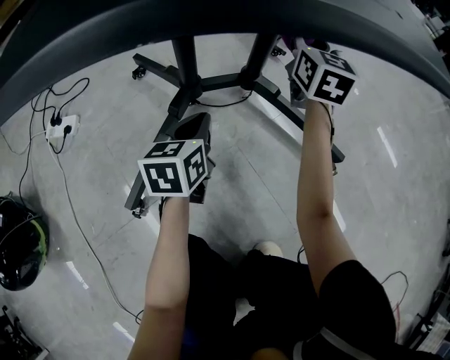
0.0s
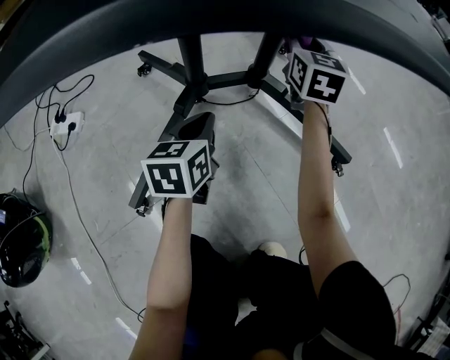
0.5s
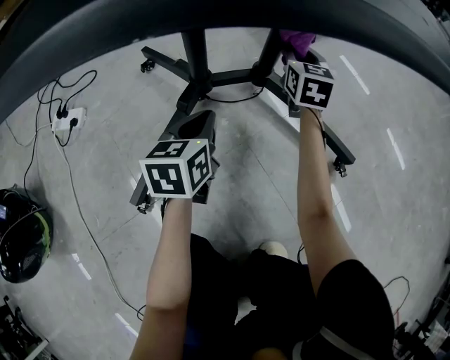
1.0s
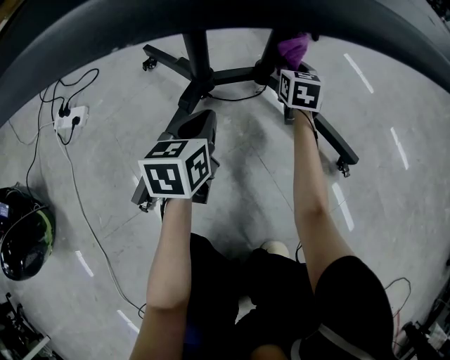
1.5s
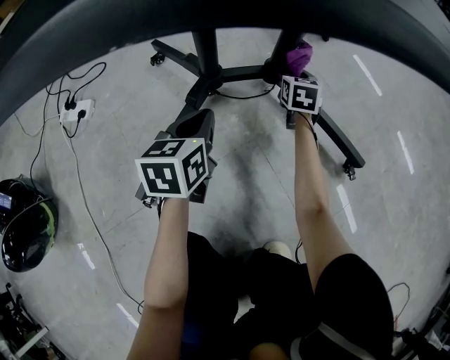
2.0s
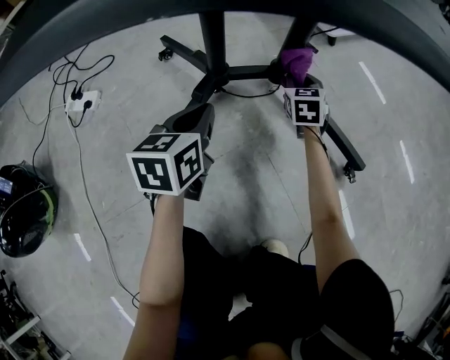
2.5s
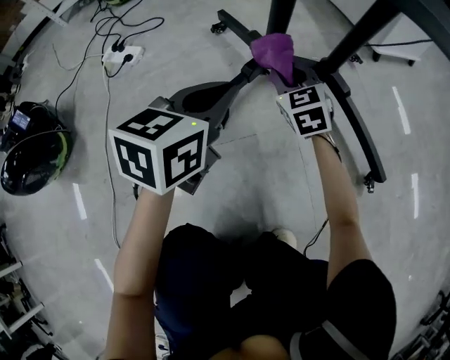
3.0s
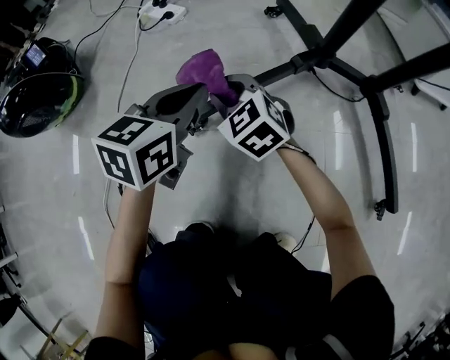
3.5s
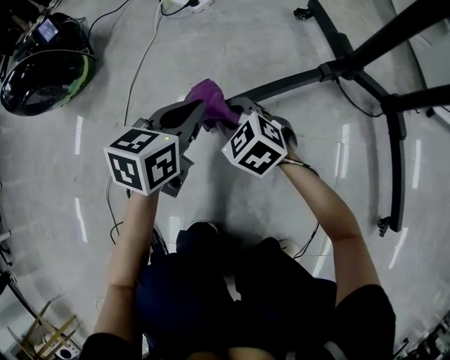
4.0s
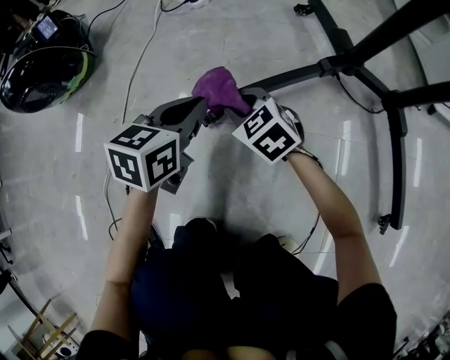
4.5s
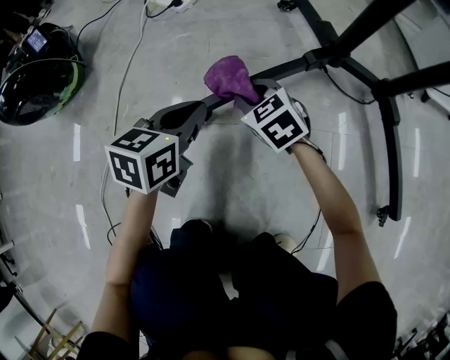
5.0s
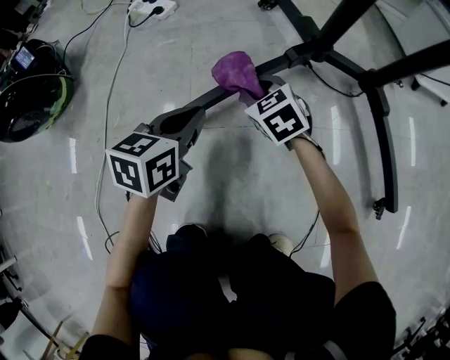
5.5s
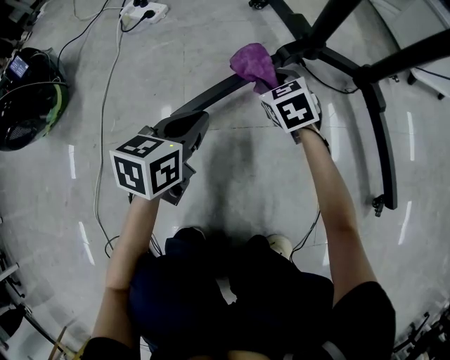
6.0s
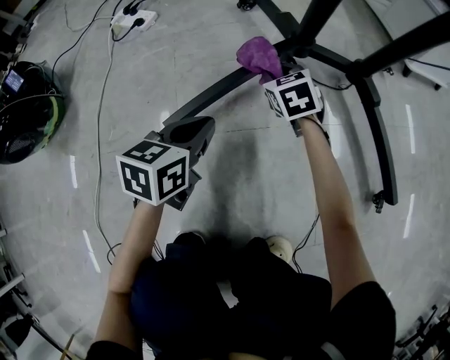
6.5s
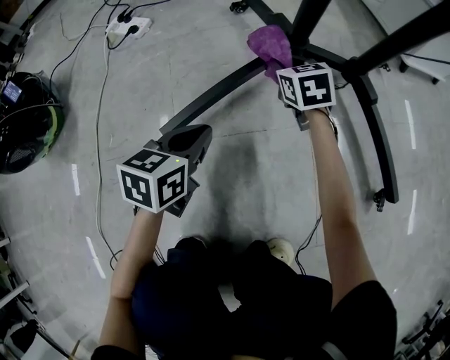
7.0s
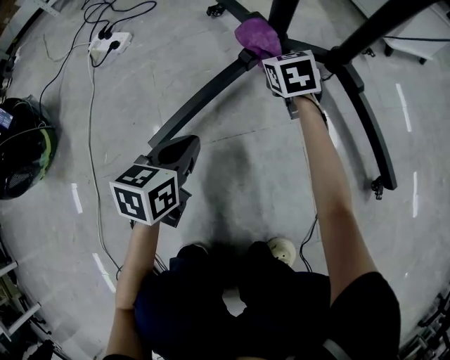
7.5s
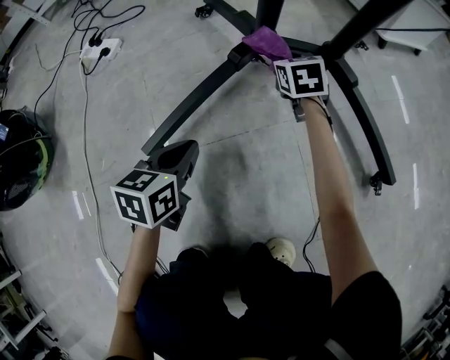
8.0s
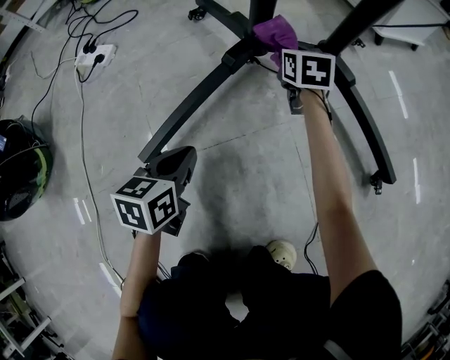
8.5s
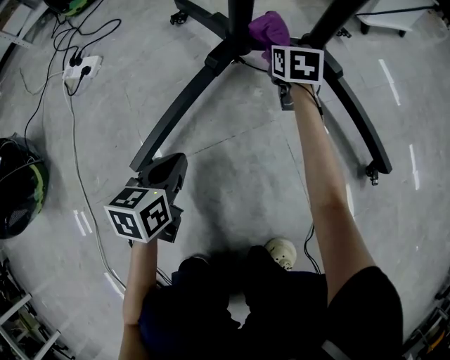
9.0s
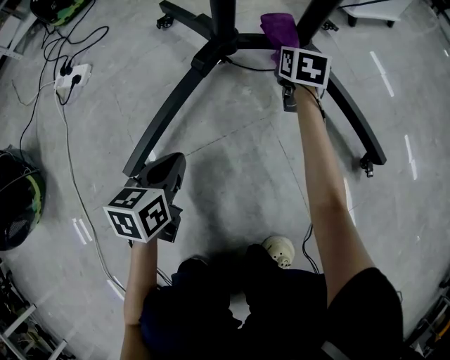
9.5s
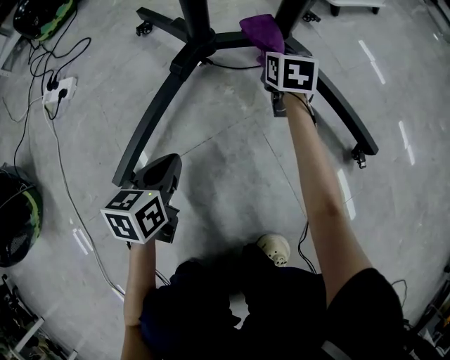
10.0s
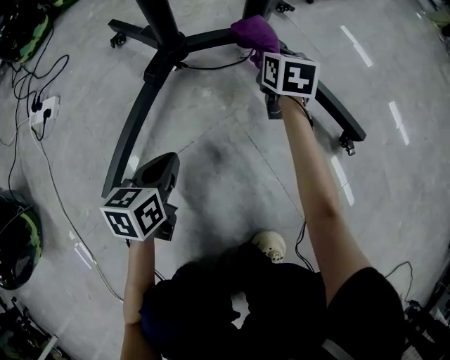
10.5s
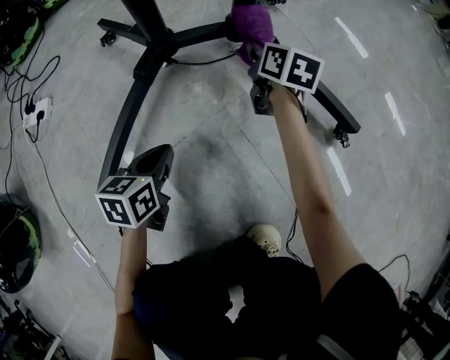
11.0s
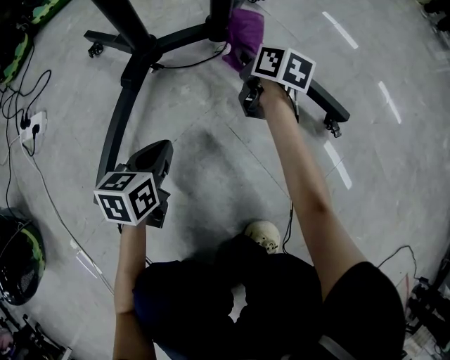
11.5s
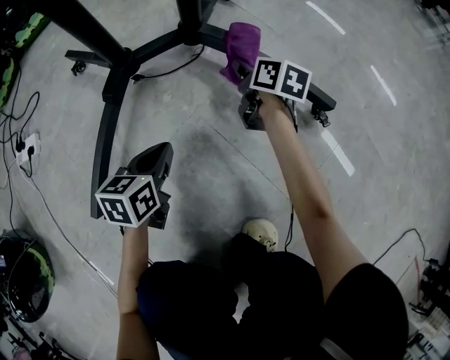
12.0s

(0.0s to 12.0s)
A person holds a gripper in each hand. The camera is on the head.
0.0s - 2.0s: The right gripper shifts some 25 cm downward, and swivels approximately 20 degrees.
2.0s - 4.0s: The right gripper shifts by about 60 cm, and rotates approximately 90 degrees. Meanwhile the left gripper reaches roughly 10 cm upward, then returns, and changes its angle by some 20 degrees.
4.0s - 6.0s: The left gripper heads to the right, covering roughly 10 cm; the right gripper travels to the right and forward by approximately 25 cm, and swivels roughly 30 degrees.
6.0s - 8.0s: The left gripper moves to the right, about 5 cm; the right gripper goes roughly 20 cm to the right and forward, and rotates approximately 30 degrees.
8.0s - 10.0s: The right gripper goes approximately 15 cm to the right, and turns by some 20 degrees; the left gripper moves approximately 5 cm.
10.0s - 12.0s: The left gripper heads to the right and forward, covering about 10 cm, while the right gripper travels to the right and backward by about 15 cm, and rotates approximately 40 degrees.

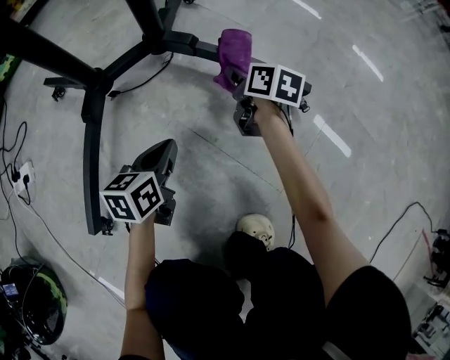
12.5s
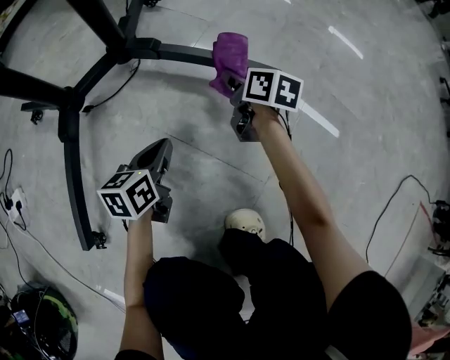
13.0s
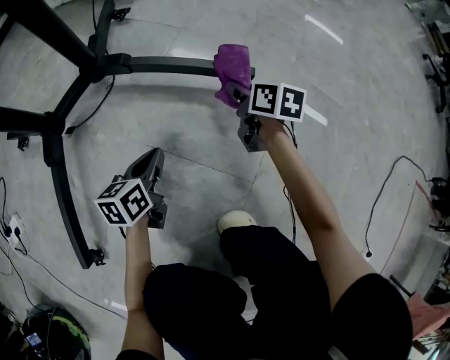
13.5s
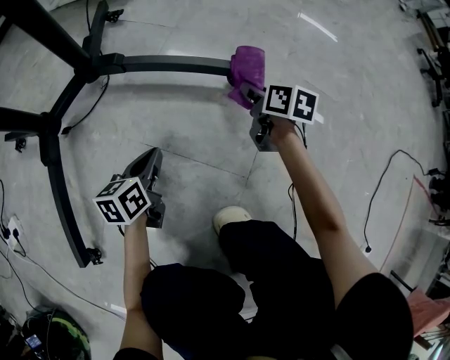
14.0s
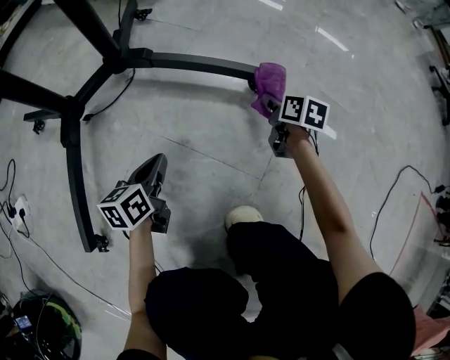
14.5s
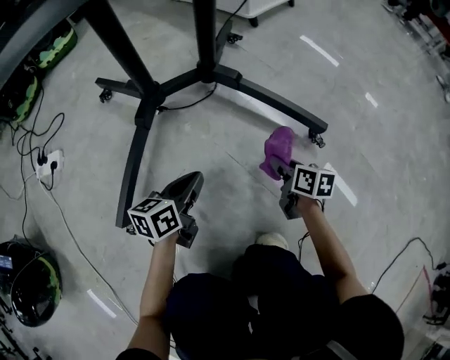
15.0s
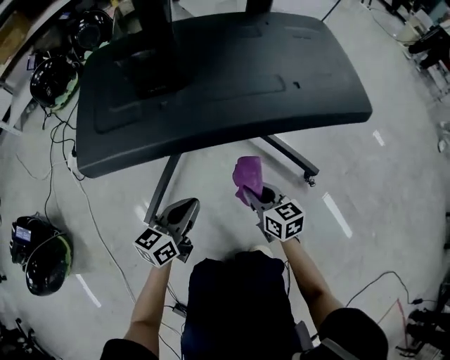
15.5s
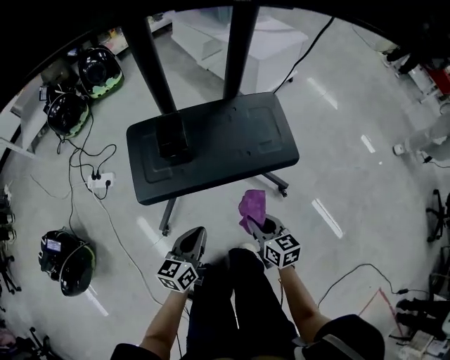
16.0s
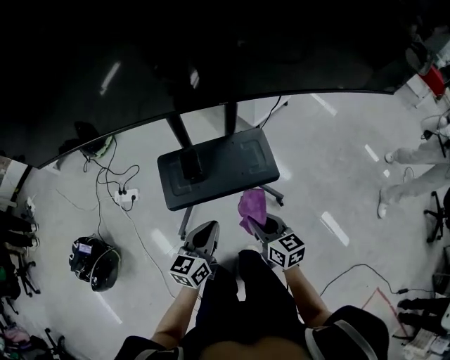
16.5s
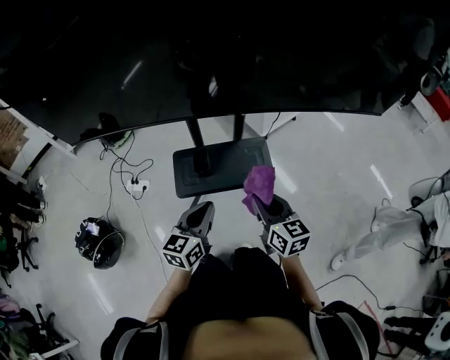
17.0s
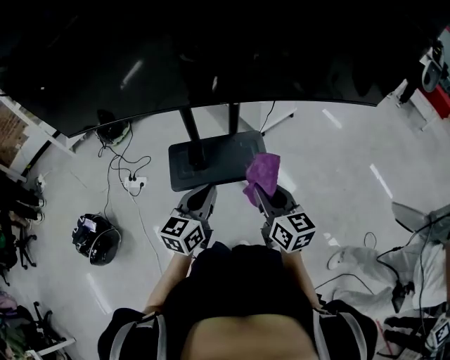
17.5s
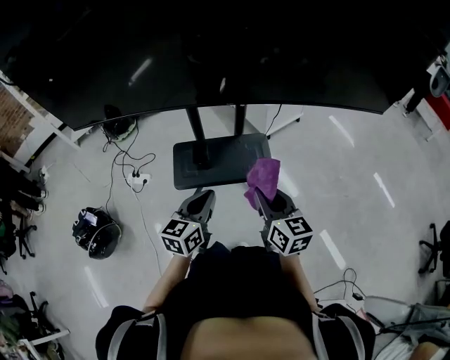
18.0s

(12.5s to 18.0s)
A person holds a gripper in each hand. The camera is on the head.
12.5s - 14.5s: The right gripper moves to the right, approximately 25 cm.
14.5s - 16.0s: The grippers both shift upward by approximately 40 cm. The left gripper changes its angle by approximately 20 degrees. The right gripper swivels some 50 degrees.
16.0s - 18.0s: The grippers both shift upward by some 40 cm.

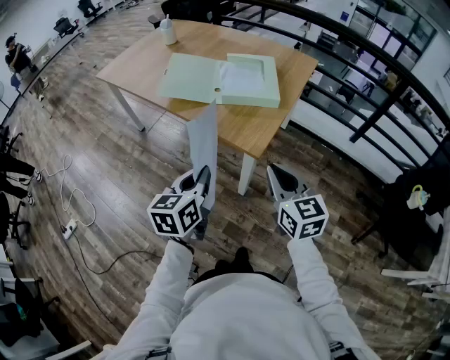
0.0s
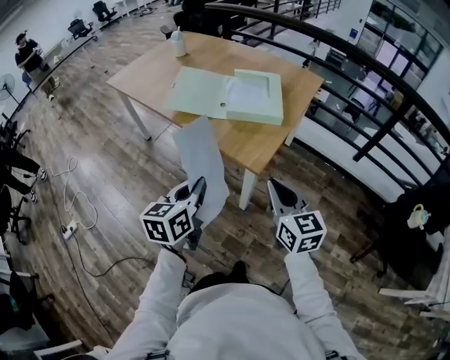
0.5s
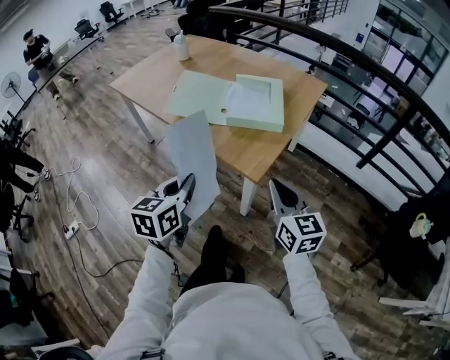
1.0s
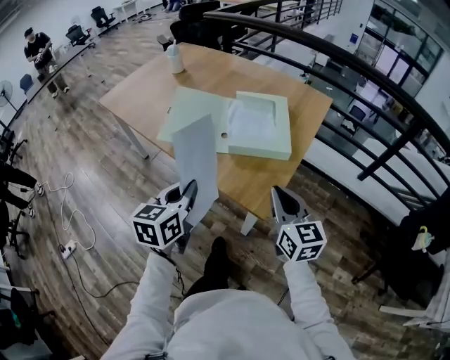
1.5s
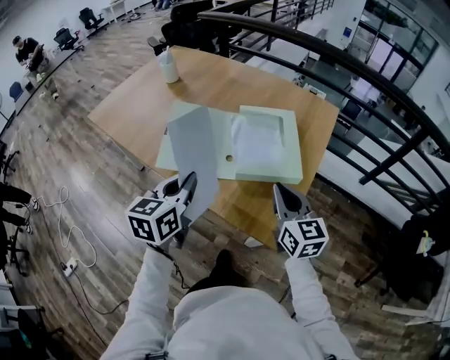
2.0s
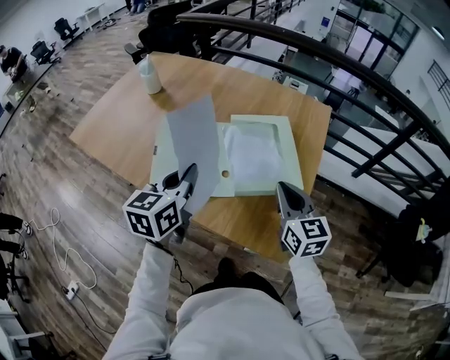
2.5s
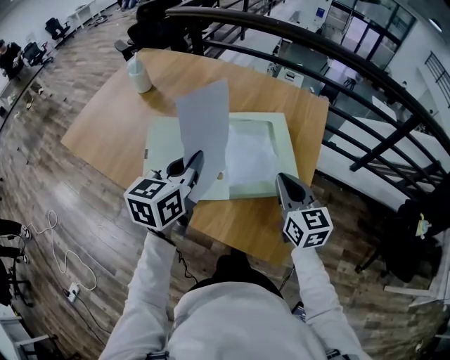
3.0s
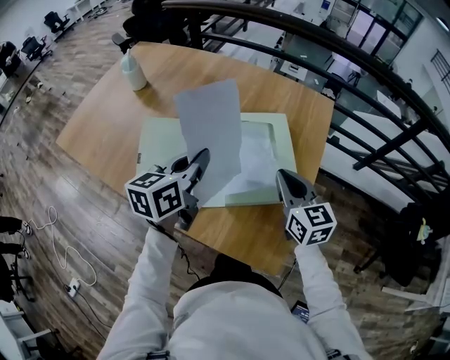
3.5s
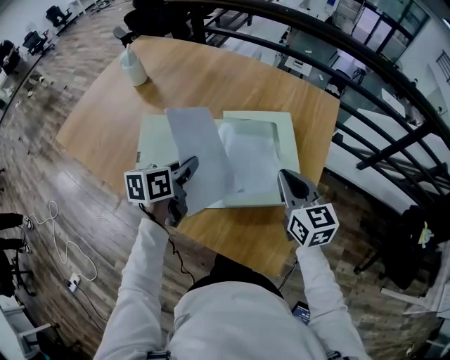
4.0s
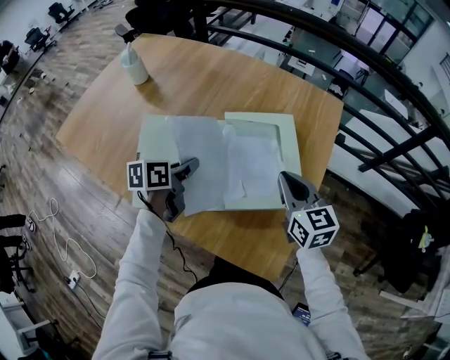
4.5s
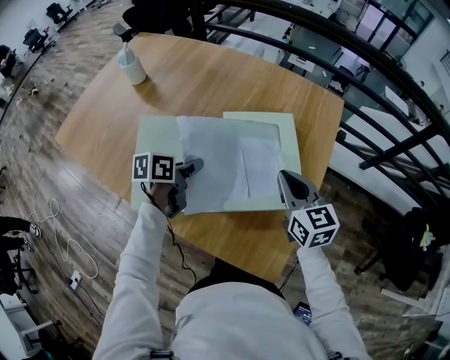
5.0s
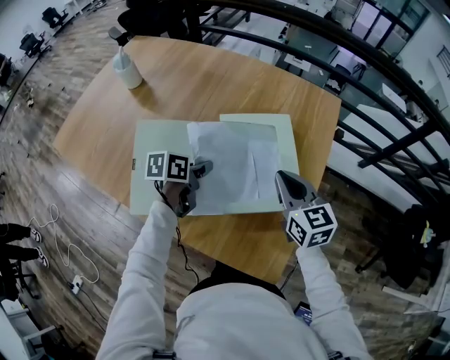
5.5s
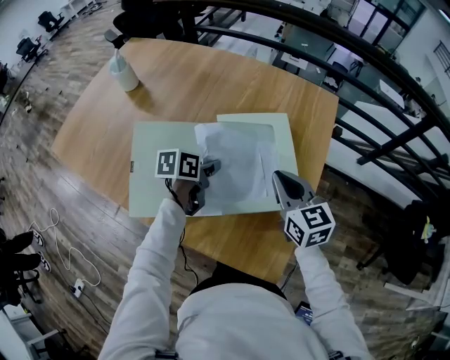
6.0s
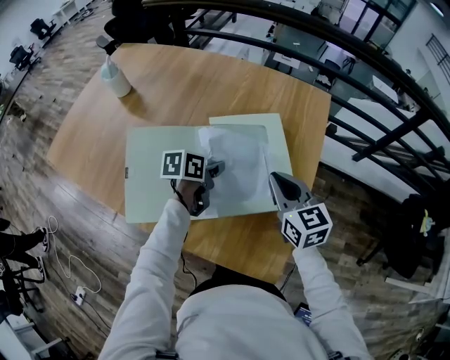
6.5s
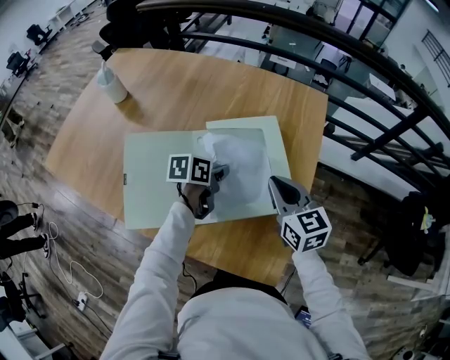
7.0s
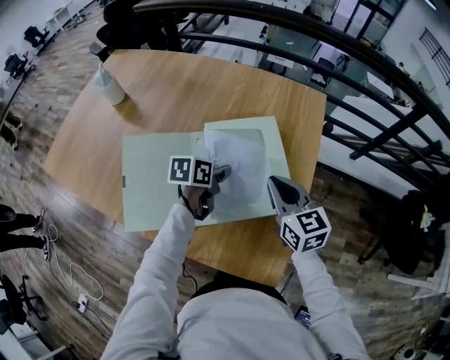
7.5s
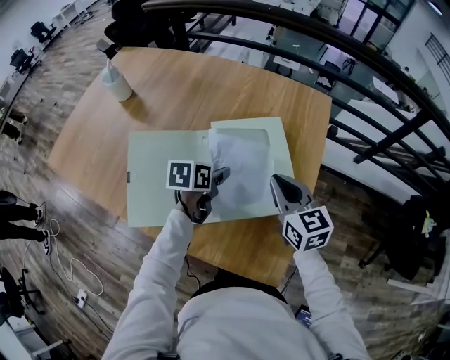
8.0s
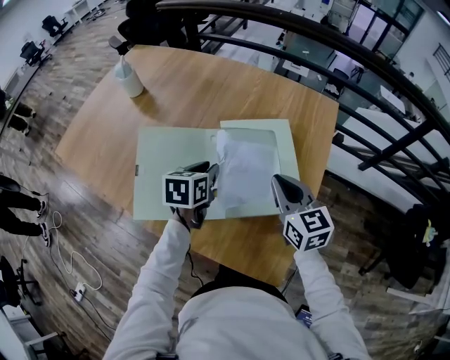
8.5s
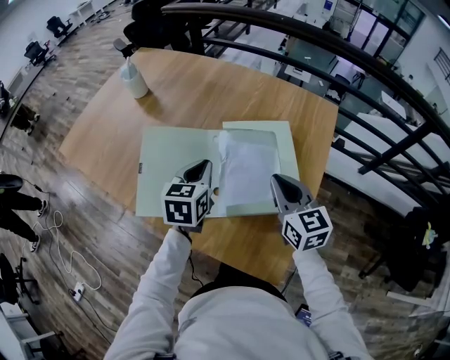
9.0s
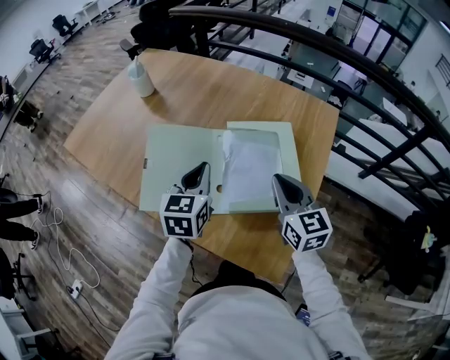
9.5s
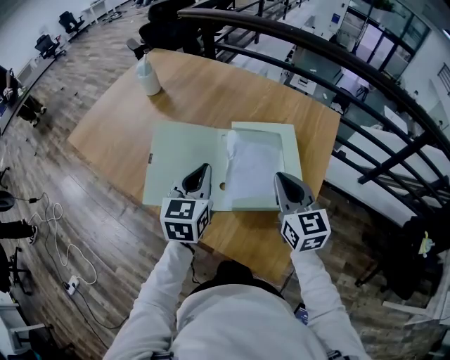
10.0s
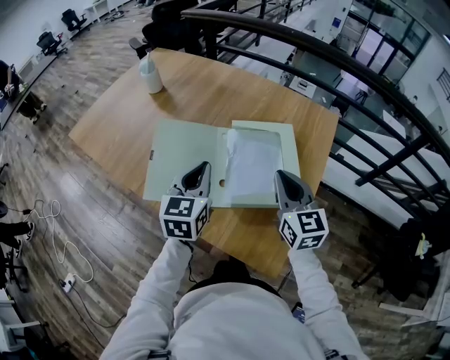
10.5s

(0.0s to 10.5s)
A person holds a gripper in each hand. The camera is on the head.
0.0s - 2.0s: Both grippers travel together forward, some 30 cm.
2.0s - 4.0s: The left gripper travels forward and downward by roughly 25 cm, and rotates about 30 degrees. The right gripper is displaced forward by some 15 cm.
4.0s - 6.5s: The left gripper shifts approximately 15 cm to the right, downward and forward, and swivels about 20 degrees.
6.5s - 8.5s: The left gripper heads to the left, covering roughly 5 cm, swivels about 30 degrees, and opens.
8.5s - 10.5s: The right gripper shifts by some 5 cm. Meanwhile the left gripper moves upward and backward, about 15 cm, rotates roughly 30 degrees, and closes its fingers.
